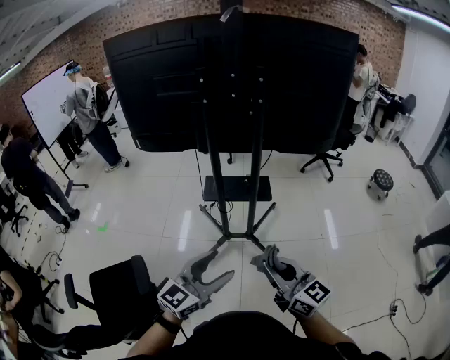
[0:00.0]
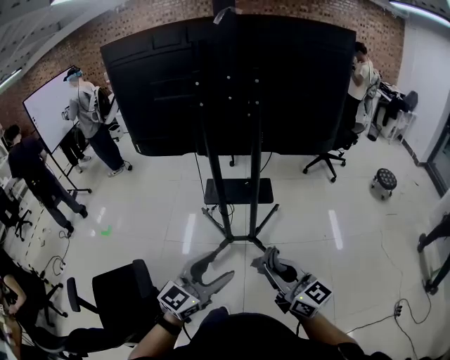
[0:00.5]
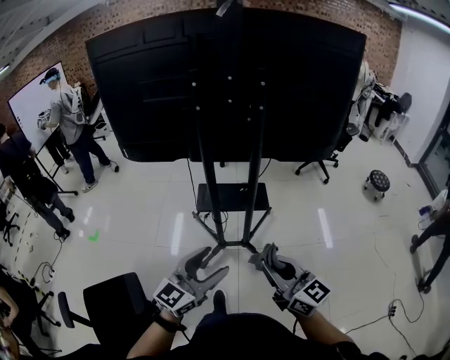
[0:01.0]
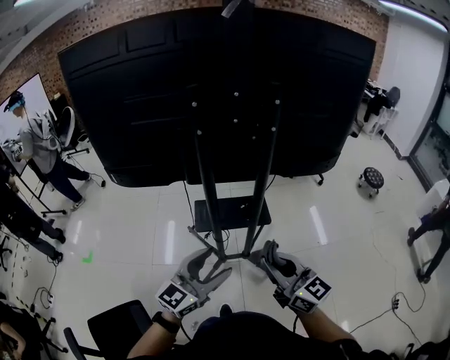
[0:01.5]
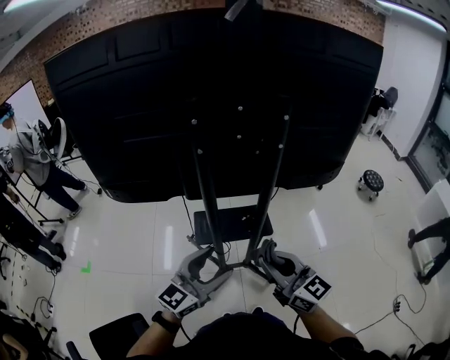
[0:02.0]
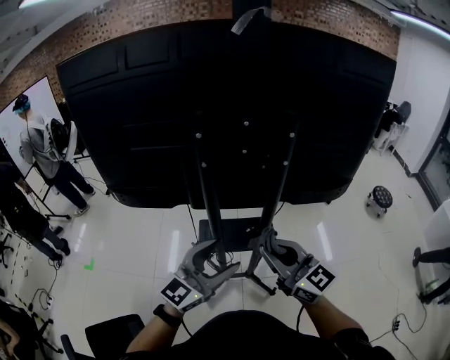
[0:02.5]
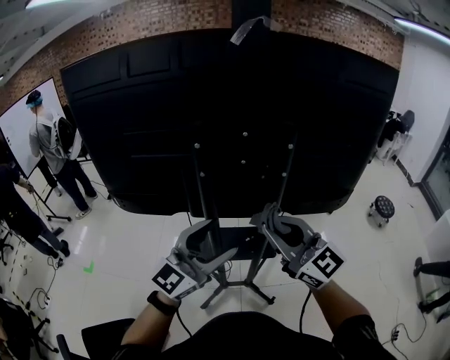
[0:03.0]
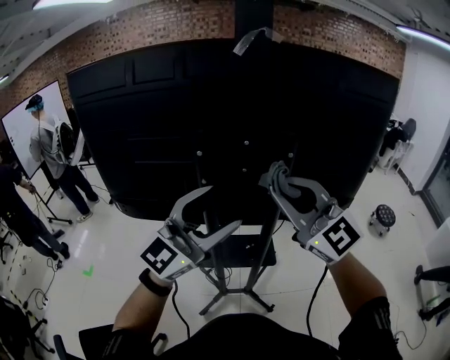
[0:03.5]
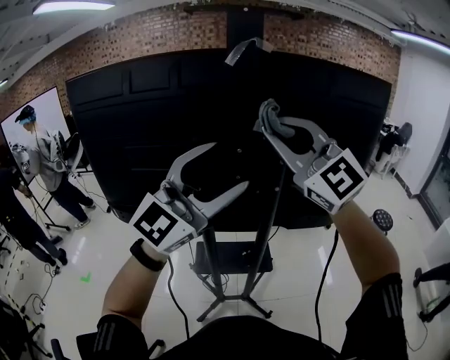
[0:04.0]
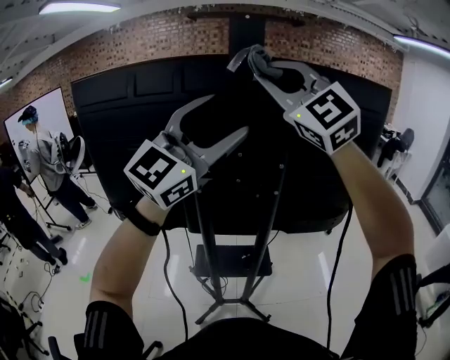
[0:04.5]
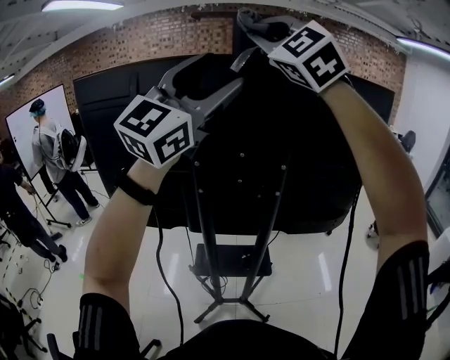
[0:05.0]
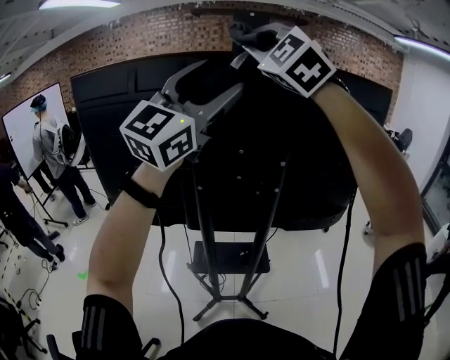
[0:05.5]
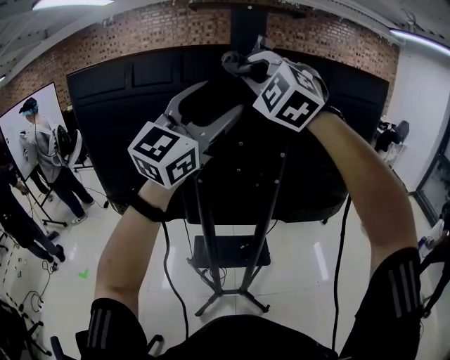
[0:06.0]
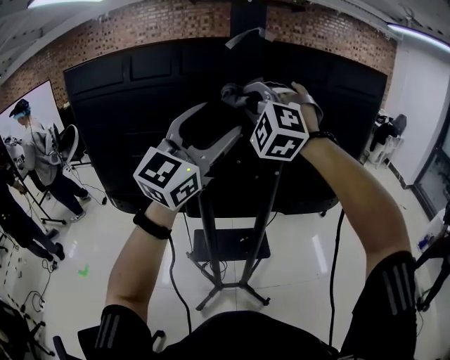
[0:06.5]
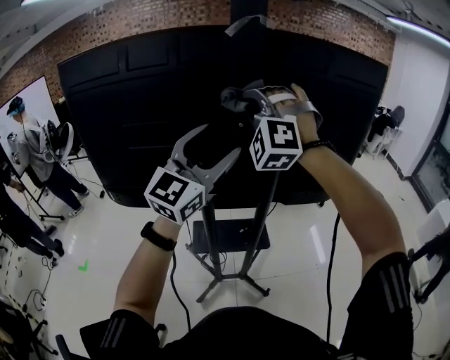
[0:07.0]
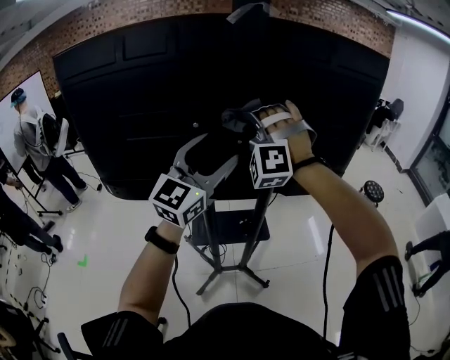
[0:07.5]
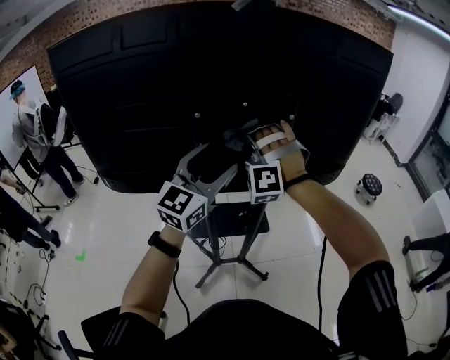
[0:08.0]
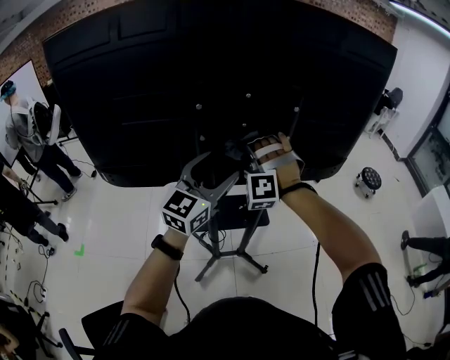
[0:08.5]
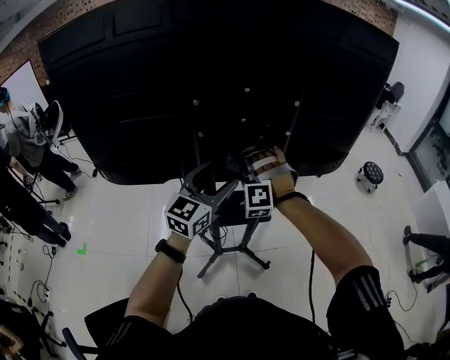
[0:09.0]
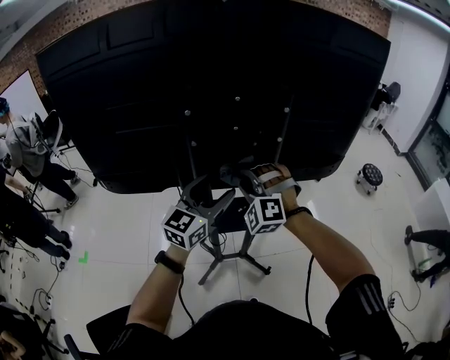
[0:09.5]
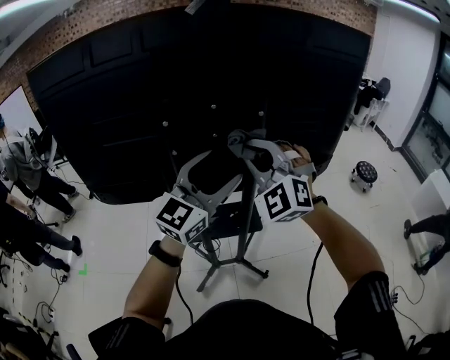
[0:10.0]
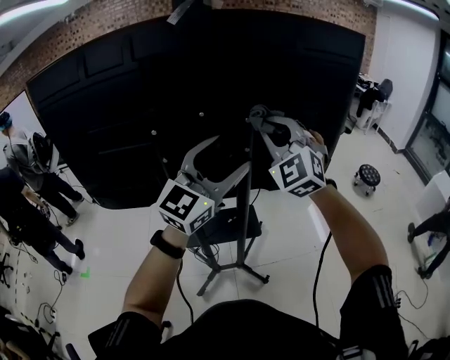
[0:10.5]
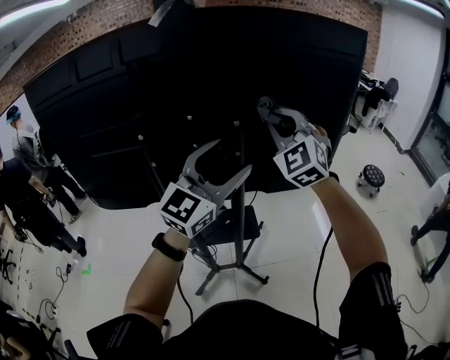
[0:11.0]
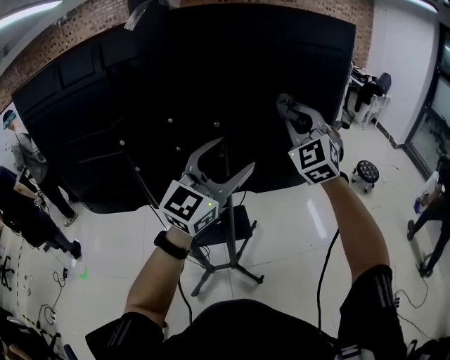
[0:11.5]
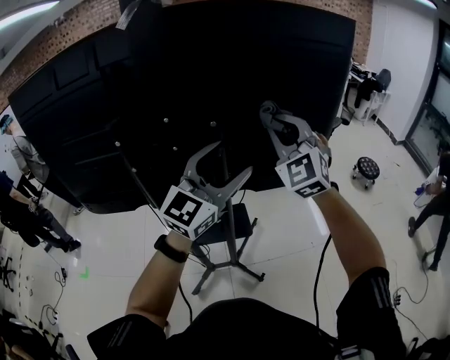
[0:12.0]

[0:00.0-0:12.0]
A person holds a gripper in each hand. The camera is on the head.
0:00.0 to 0:02.0: Both grippers travel together forward, some 30 cm.
0:02.0 to 0:04.0: The left gripper heads upward, covering some 35 cm, and swivels roughly 40 degrees, while the right gripper goes approximately 40 cm upward and forward, and twists approximately 50 degrees counterclockwise, seen from behind.
0:04.0 to 0:06.0: The left gripper is displaced upward and forward by some 10 cm. Meanwhile the right gripper shifts roughly 10 cm forward and to the left, reaches roughly 20 cm upward, then returns, and swivels about 40 degrees.
0:06.0 to 0:08.0: The two grippers go some 25 cm downward. The right gripper swivels approximately 40 degrees. Meanwhile the left gripper rotates approximately 20 degrees.
0:08.0 to 0:10.0: The left gripper heads to the right, covering some 10 cm, and travels downward and back again, roughly 10 cm each way; the right gripper heads to the right and backward, covering some 10 cm, moves about 15 cm downward and comes back, and rotates approximately 40 degrees.
0:10.0 to 0:12.0: Both grippers travel together to the right and forward, about 15 cm.

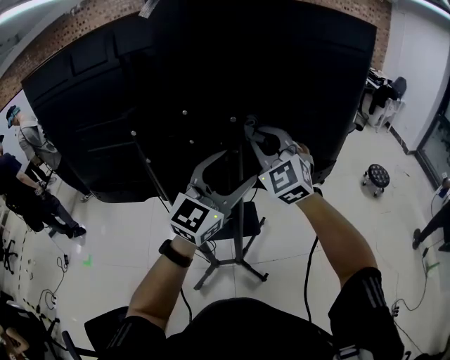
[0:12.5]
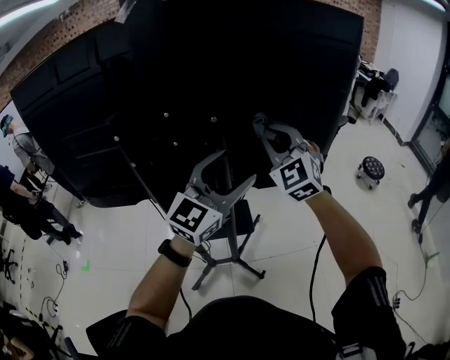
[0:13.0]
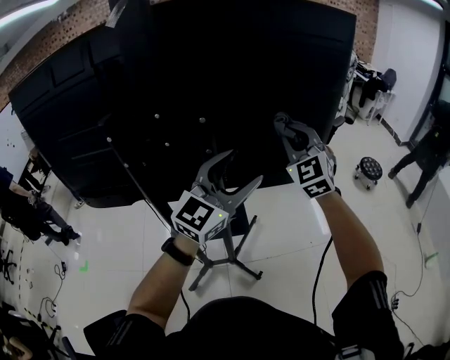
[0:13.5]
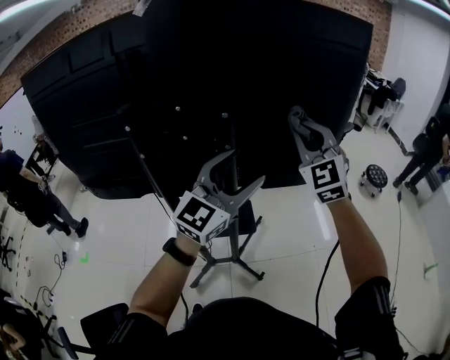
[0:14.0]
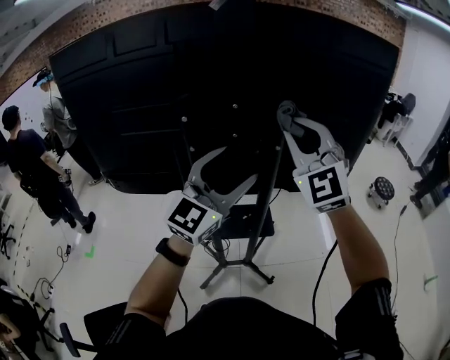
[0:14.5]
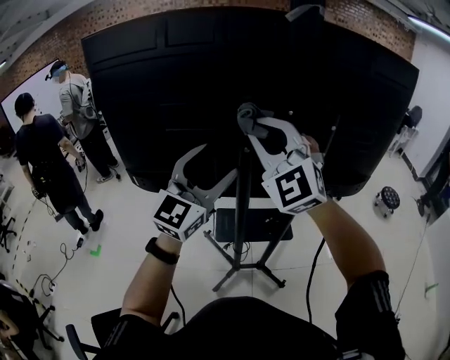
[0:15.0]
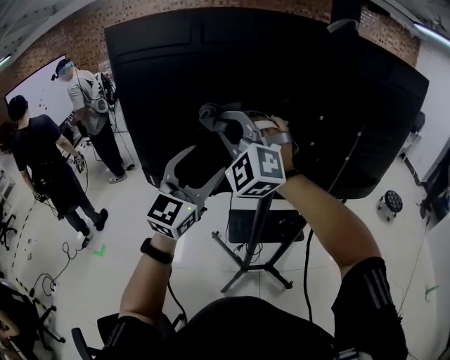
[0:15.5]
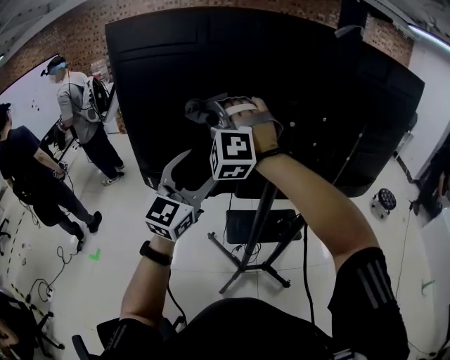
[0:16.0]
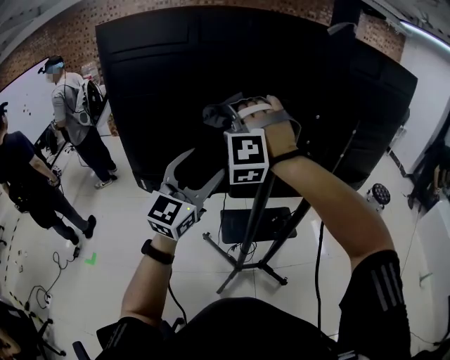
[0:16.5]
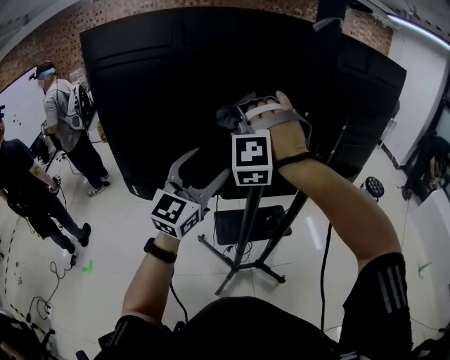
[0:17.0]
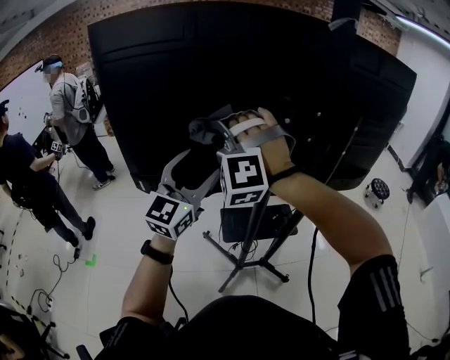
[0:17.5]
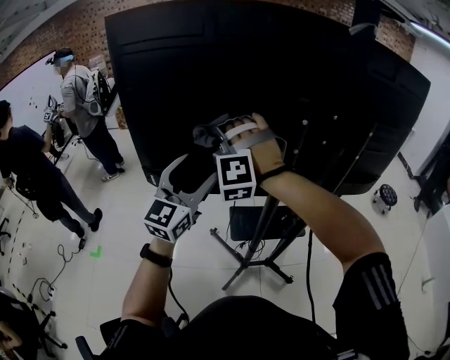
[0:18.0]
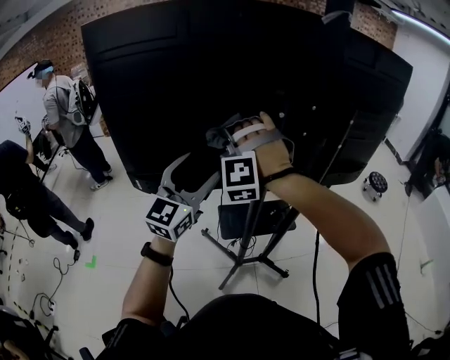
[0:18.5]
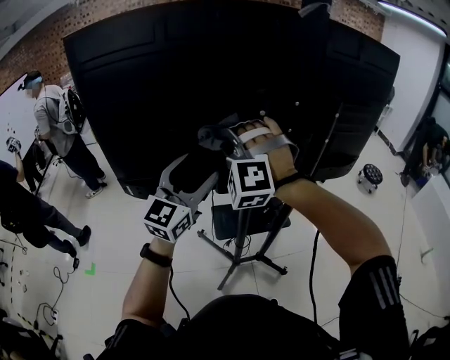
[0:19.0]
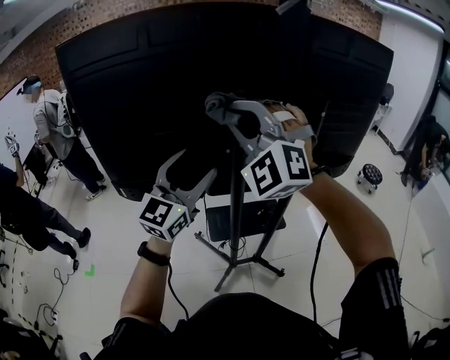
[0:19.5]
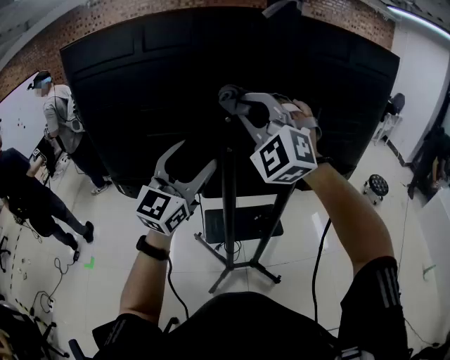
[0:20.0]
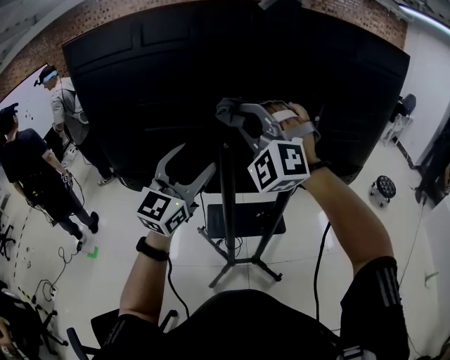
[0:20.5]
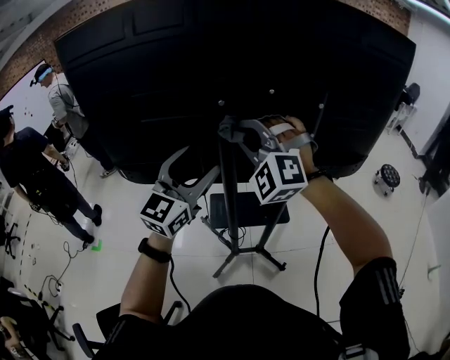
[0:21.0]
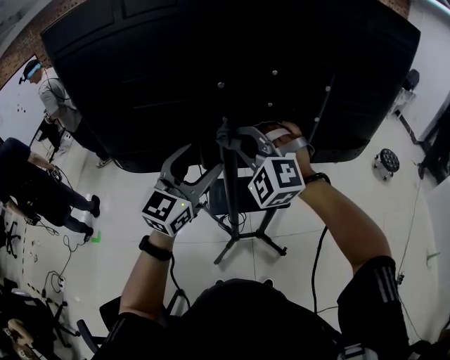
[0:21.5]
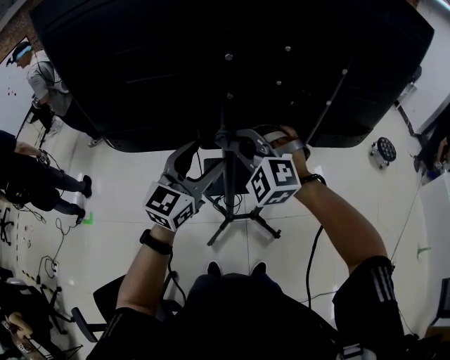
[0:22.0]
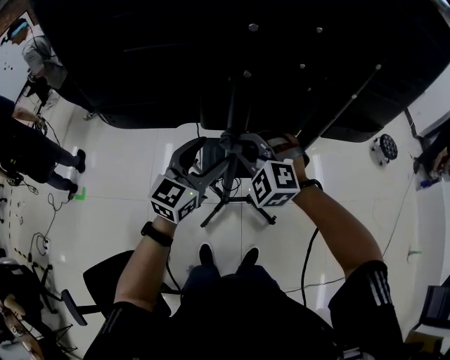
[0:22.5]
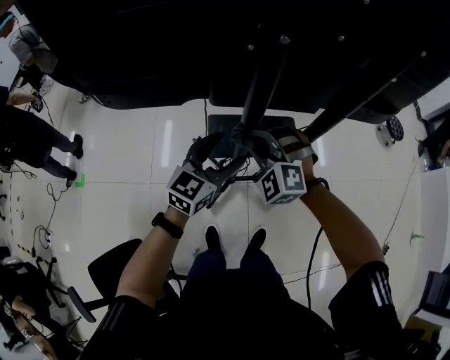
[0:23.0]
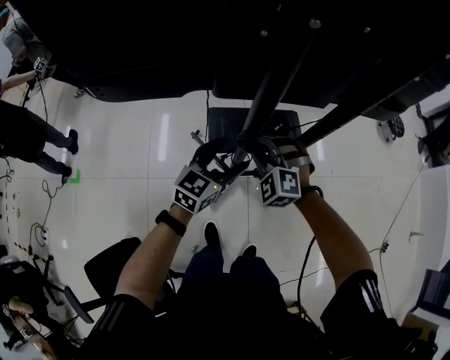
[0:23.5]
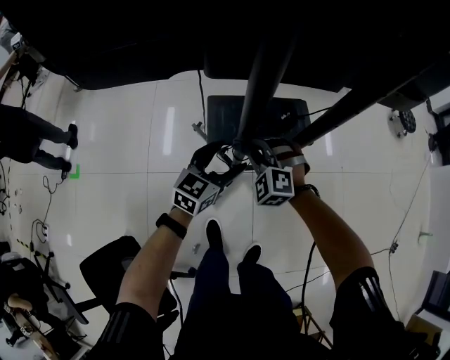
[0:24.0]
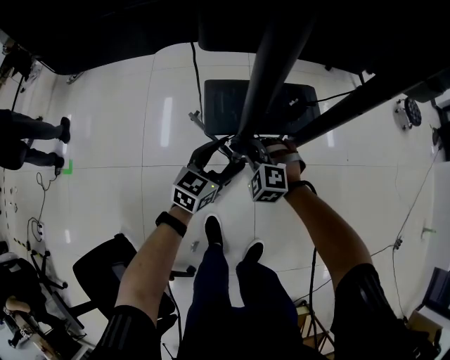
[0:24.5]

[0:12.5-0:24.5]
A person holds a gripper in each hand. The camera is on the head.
0:12.5 to 0:14.5: The right gripper heads upward and backward, covering roughly 10 cm, and travels to the right and back again, about 15 cm each way, while the left gripper shifts some 10 cm to the left and backward.
0:14.5 to 0:16.5: The two grippers go roughly 35 cm to the left. The right gripper rotates around the line of its fingers by some 50 degrees, counterclockwise from behind.
0:16.5 to 0:18.5: The left gripper reaches approximately 5 cm to the left, then returns; the right gripper swings left and right, roughly 10 cm each way, with 2 reversals.
0:18.5 to 0:20.5: The left gripper shifts about 10 cm to the right. Meanwhile the right gripper heads to the right and upward, covering about 20 cm, and changes its angle by approximately 40 degrees.
0:20.5 to 0:22.5: The two grippers go approximately 25 cm downward. The right gripper changes its angle by some 40 degrees. The left gripper swivels approximately 20 degrees.
0:22.5 to 0:24.5: The two grippers go roughly 40 cm downward. The left gripper turns by approximately 20 degrees.

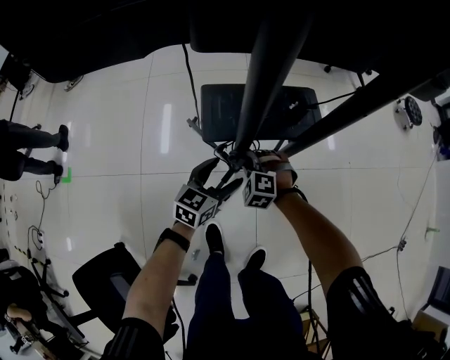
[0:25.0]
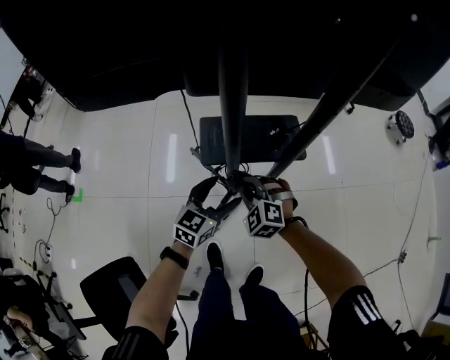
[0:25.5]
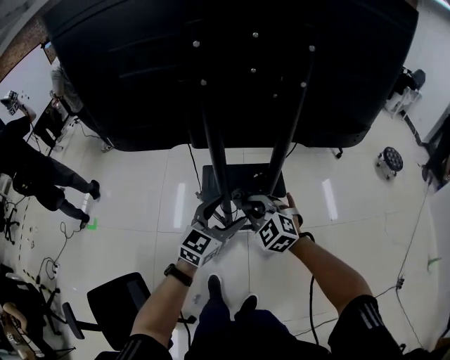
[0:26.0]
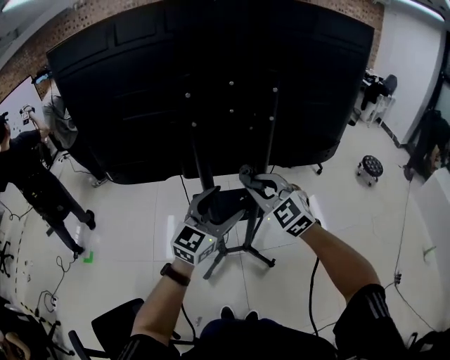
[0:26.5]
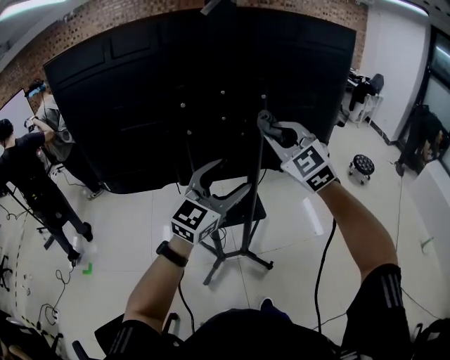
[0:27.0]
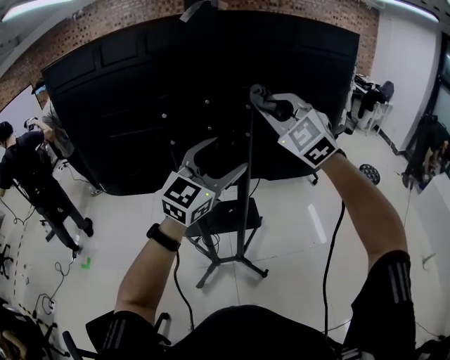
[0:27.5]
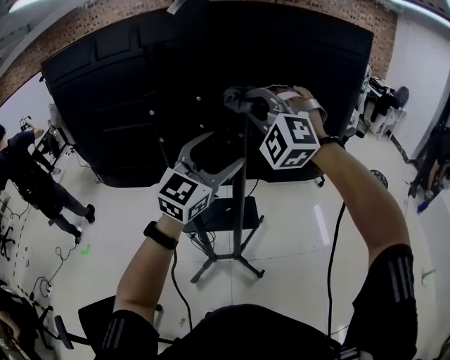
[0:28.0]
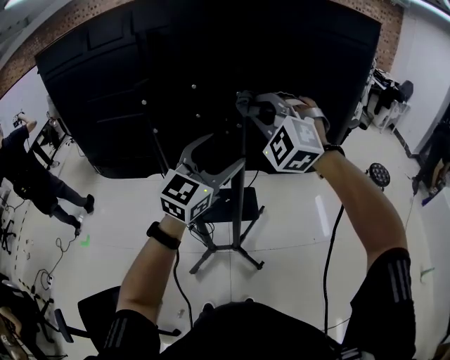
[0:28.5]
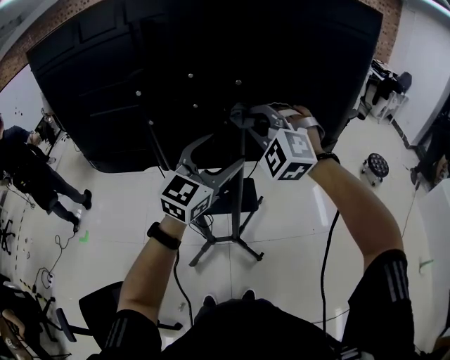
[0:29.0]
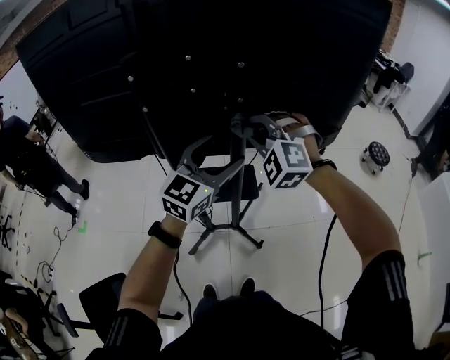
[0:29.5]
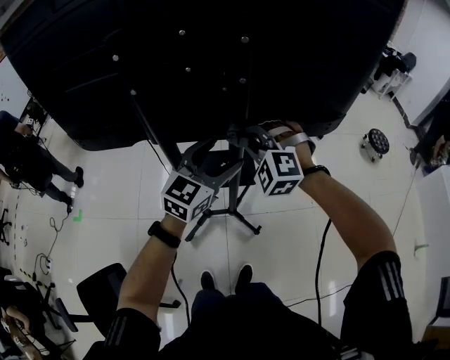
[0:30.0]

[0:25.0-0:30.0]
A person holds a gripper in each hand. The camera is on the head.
0:25.0 to 0:27.5: The two grippers go some 80 cm upward. The right gripper angles its fingers upward, by about 50 degrees. Meanwhile the left gripper turns by roughly 50 degrees.
0:27.5 to 0:30.0: The left gripper moves downward, some 20 cm. Meanwhile the right gripper heads downward, covering roughly 30 cm, and swivels about 30 degrees.
